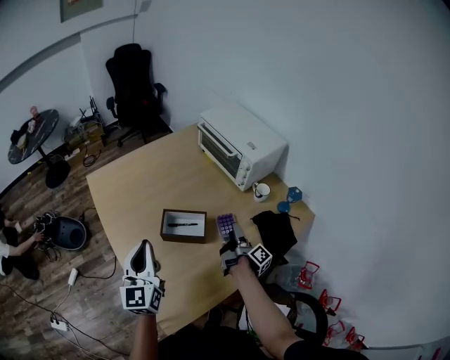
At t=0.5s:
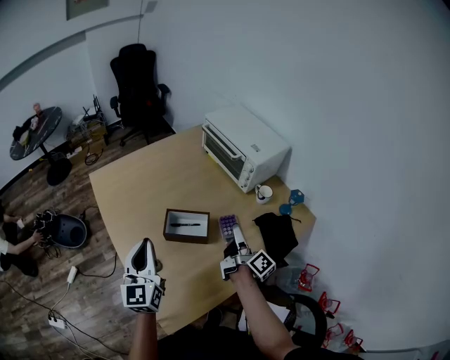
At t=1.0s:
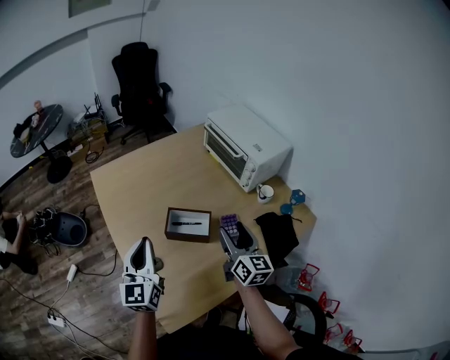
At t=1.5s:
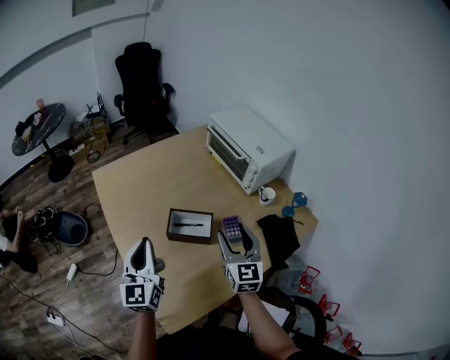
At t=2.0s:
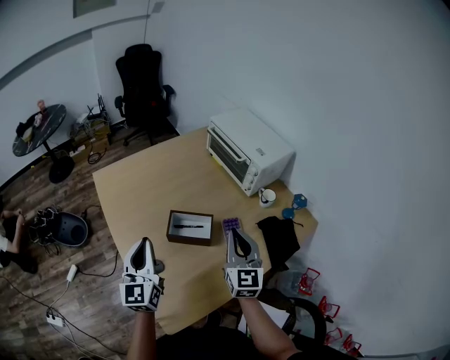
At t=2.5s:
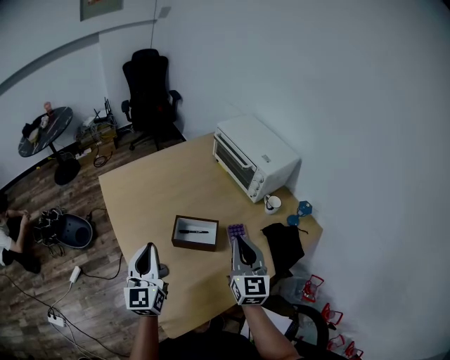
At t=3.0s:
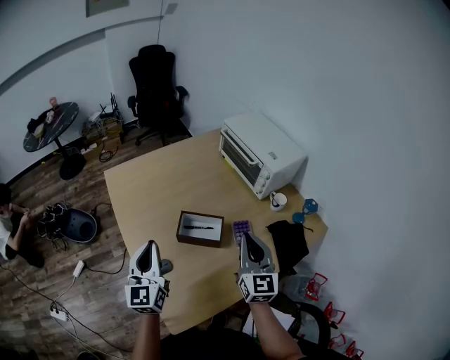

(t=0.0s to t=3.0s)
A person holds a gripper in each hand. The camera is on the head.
t=0.0s - t=1.5s: The right gripper is displaced upward and to the left by approximately 20 cm, and rotates around the line of its fingers by approximately 100 degrees, counterclockwise from behind.
t=1.5s - t=3.0s: The right gripper closes up.

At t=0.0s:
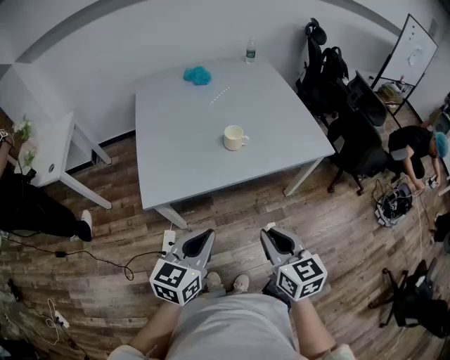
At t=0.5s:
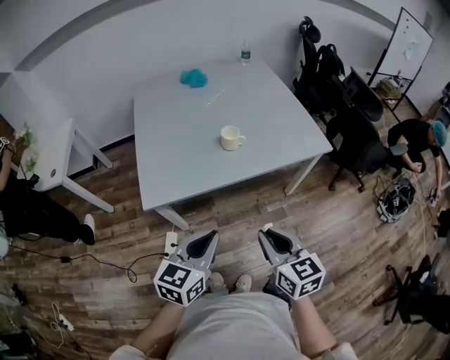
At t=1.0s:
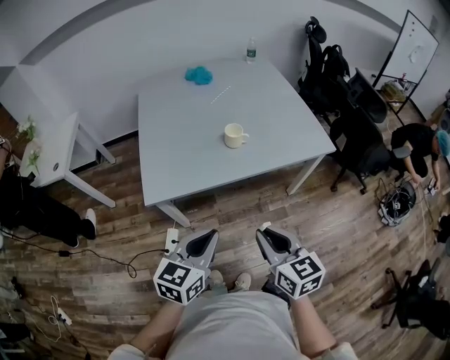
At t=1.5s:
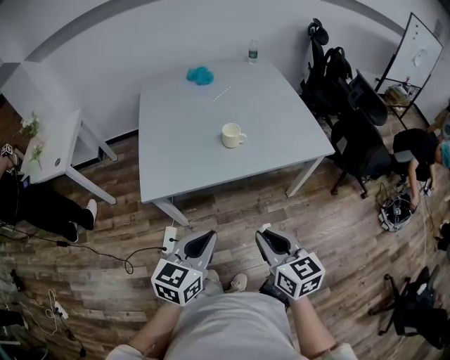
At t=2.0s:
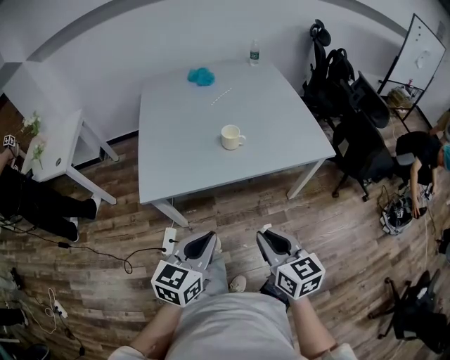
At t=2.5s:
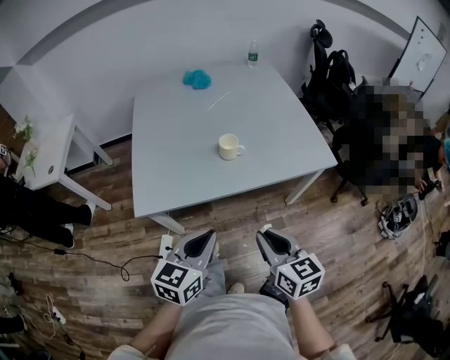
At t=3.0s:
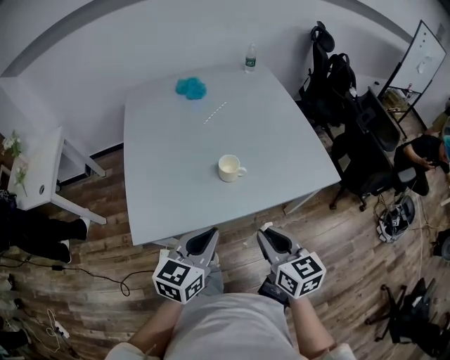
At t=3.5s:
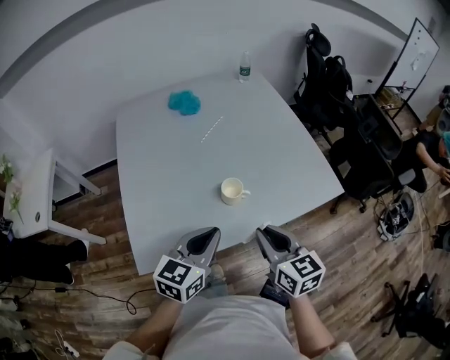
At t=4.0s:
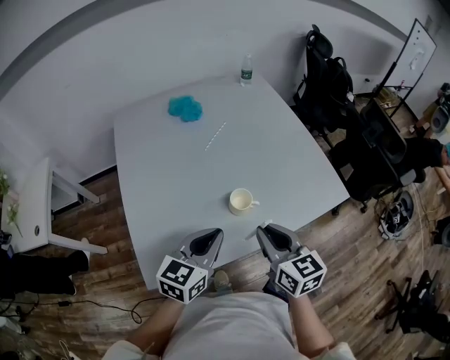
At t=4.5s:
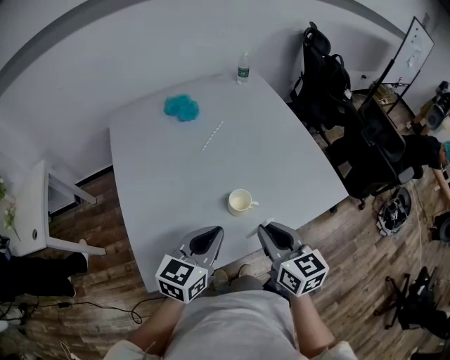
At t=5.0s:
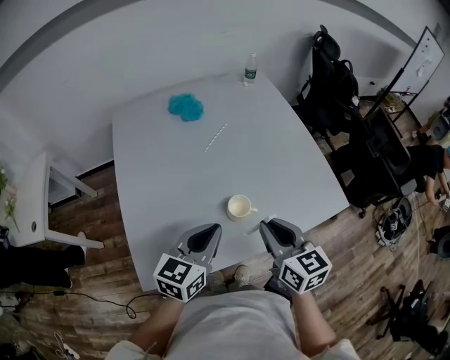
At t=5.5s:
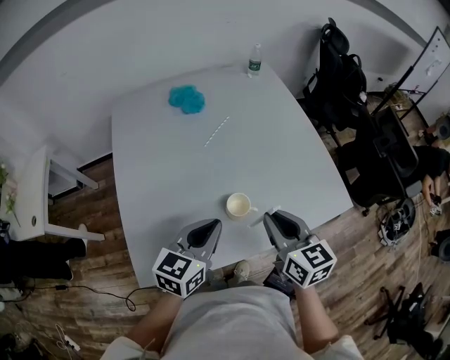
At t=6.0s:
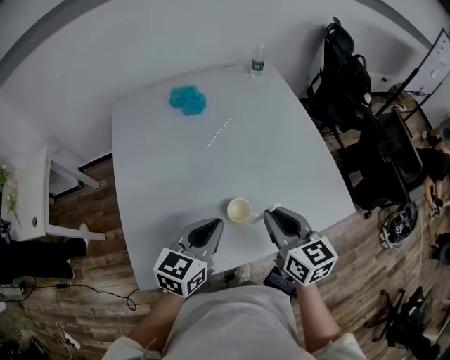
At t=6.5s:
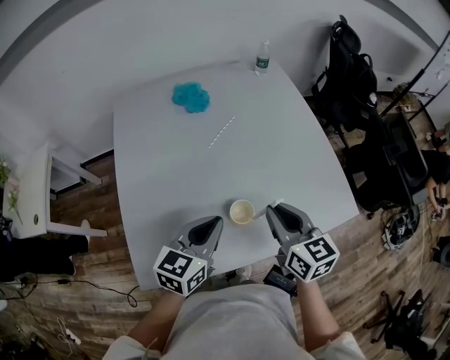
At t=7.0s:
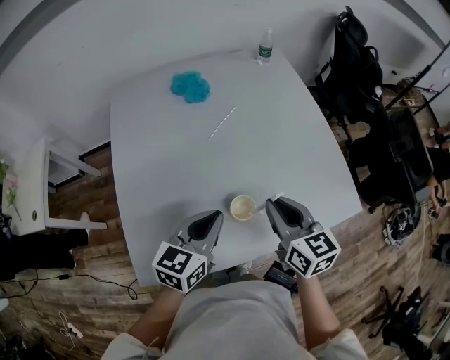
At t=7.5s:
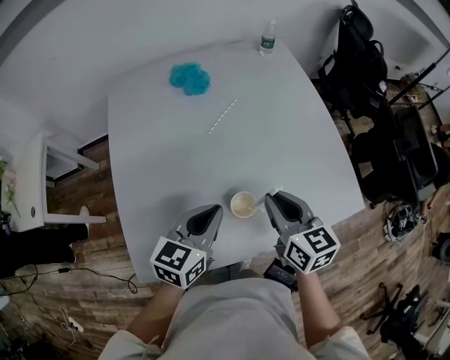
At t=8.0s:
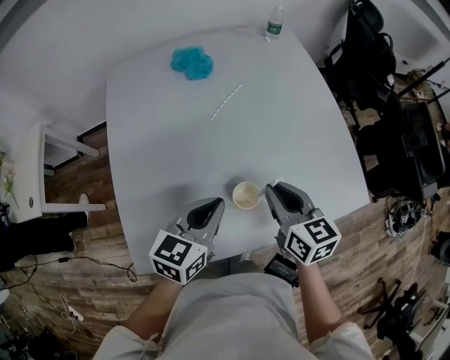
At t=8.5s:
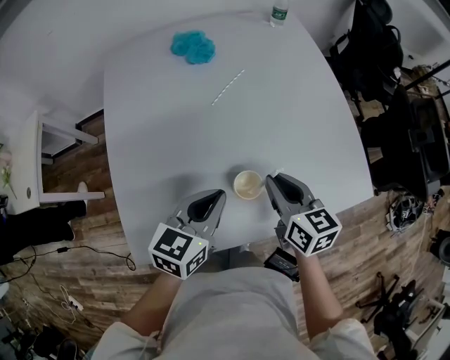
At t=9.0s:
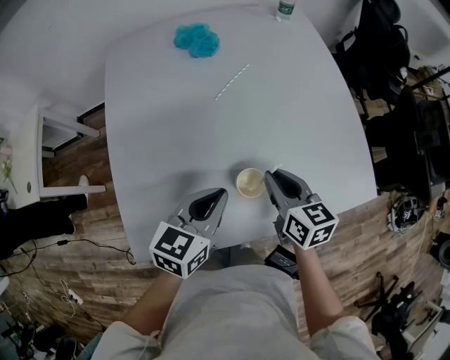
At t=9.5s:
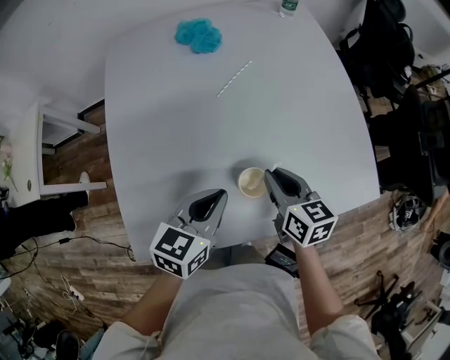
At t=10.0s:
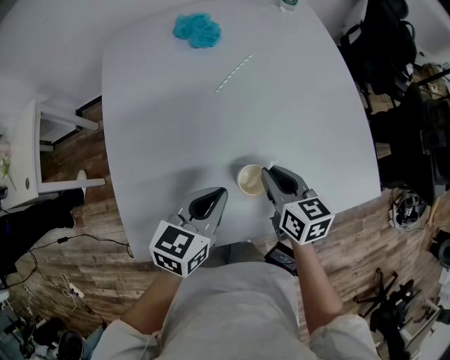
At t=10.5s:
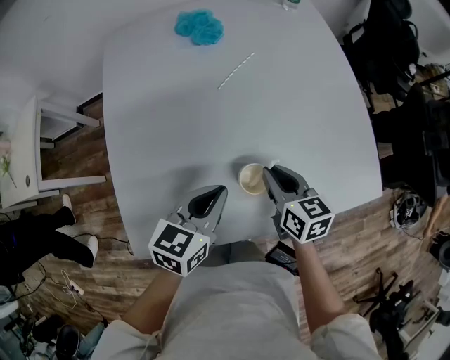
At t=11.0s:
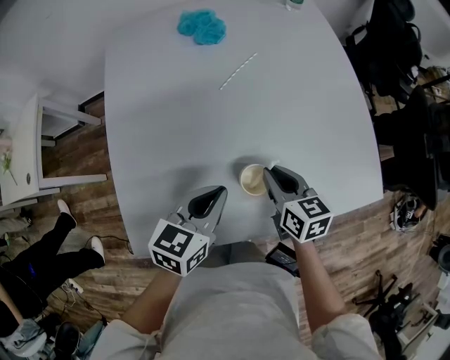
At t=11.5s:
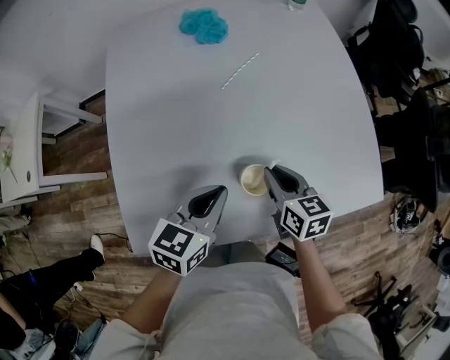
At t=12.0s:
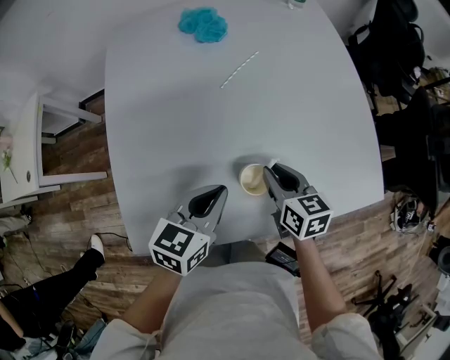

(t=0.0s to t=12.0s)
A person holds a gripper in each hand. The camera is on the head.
t=0.0s - t=2.0s: The left gripper heads to the right, covering about 5 cm.
t=2.0s - t=4.0s: The two grippers go some 30 cm forward.
t=4.0s - t=6.0s: Both grippers travel together forward, about 10 cm.
t=6.0s - t=8.0s: The right gripper shifts some 10 cm downward and forward. Meanwhile the left gripper changes place by about 5 cm.
t=8.0s - t=10.0s: The right gripper travels downward by about 10 cm.
t=10.0s - t=12.0s: The grippers stay close to where they were, moving slightly.

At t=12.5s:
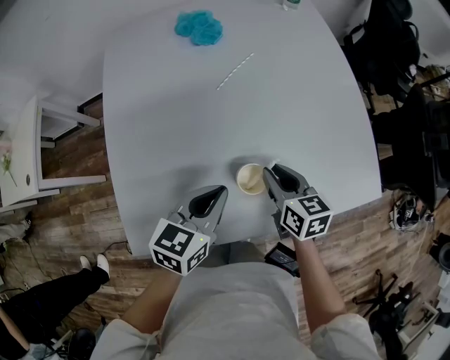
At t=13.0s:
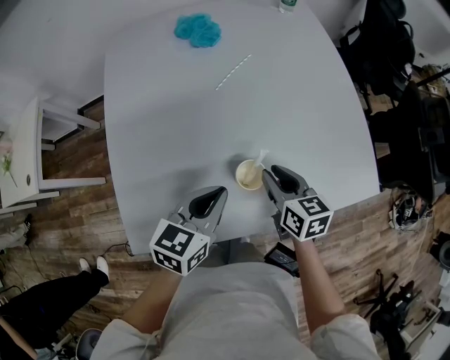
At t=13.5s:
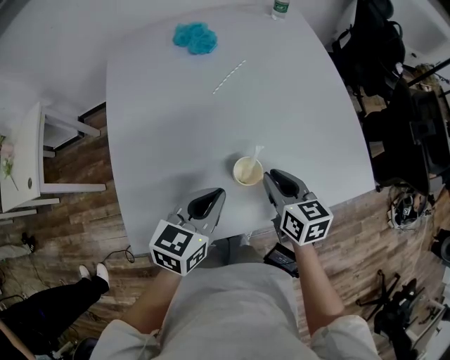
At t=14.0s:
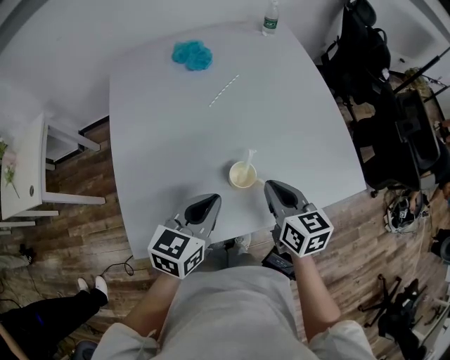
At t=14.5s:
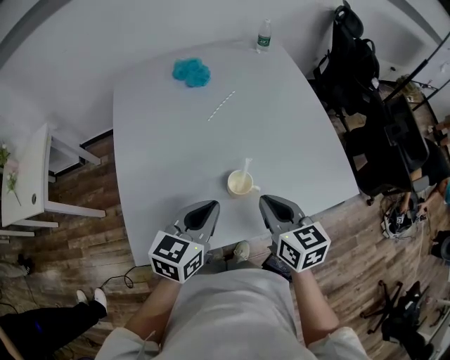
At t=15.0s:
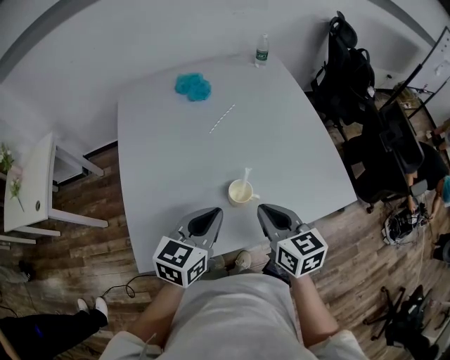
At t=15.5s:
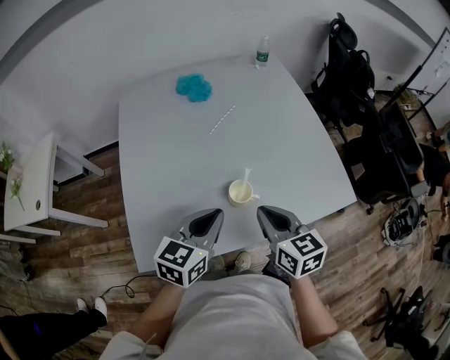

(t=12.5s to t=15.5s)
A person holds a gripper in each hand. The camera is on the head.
t=12.5s - t=14.0s: The left gripper goes approximately 5 cm backward, while the right gripper shifts approximately 10 cm upward and backward, and closes.
t=14.0s - t=15.5s: The right gripper travels upward and backward by some 5 cm.

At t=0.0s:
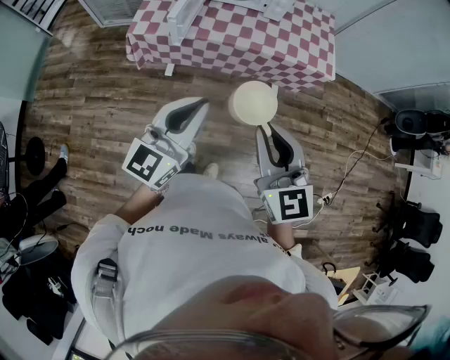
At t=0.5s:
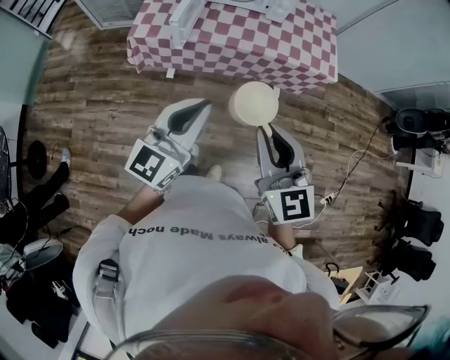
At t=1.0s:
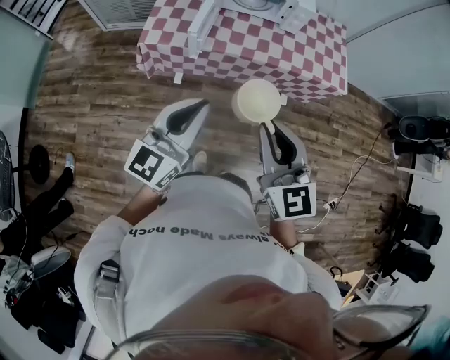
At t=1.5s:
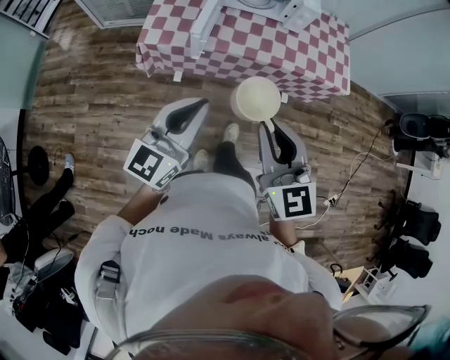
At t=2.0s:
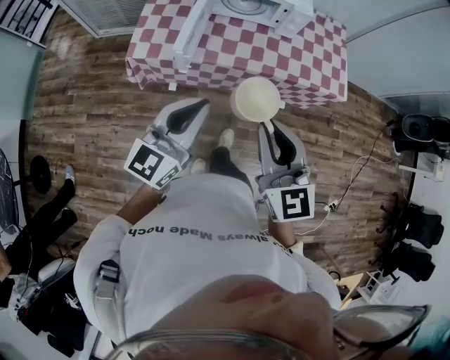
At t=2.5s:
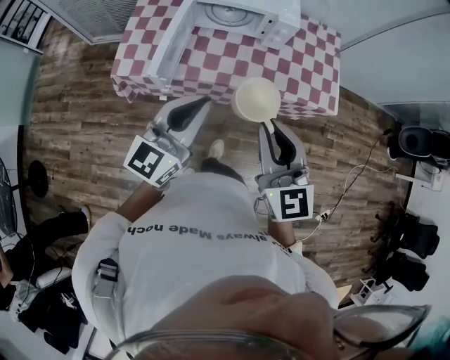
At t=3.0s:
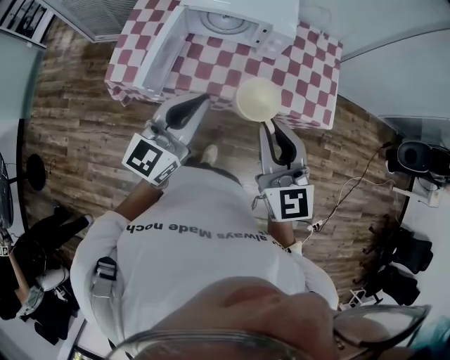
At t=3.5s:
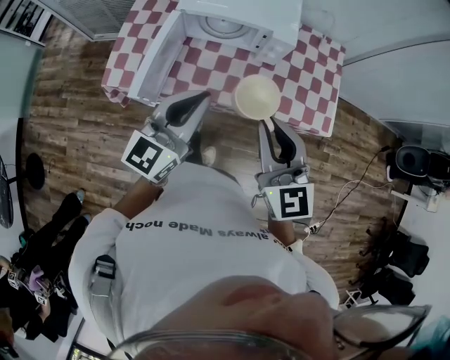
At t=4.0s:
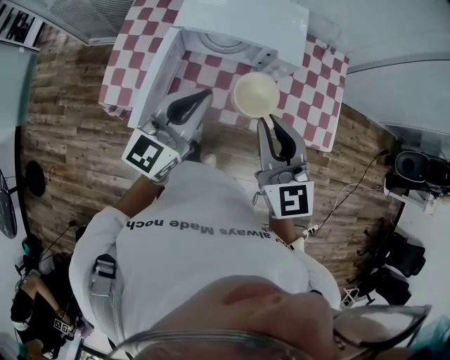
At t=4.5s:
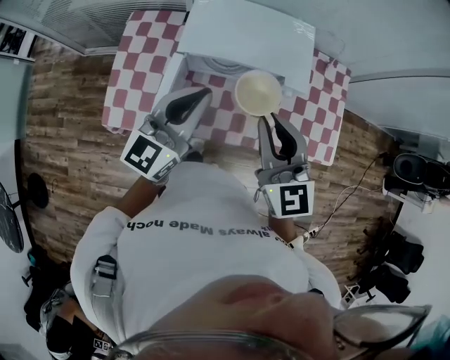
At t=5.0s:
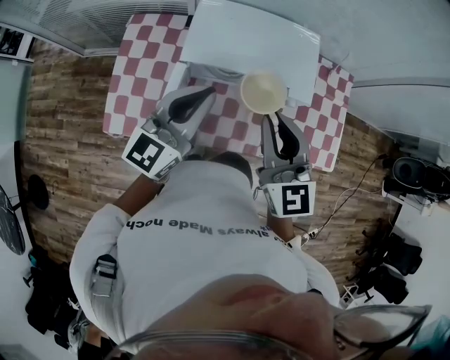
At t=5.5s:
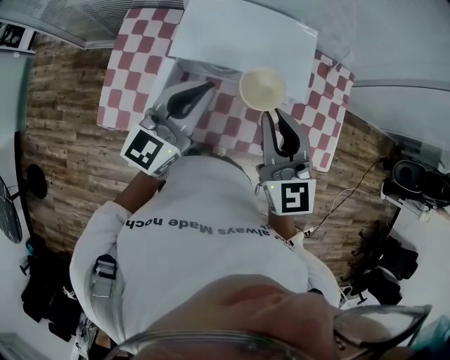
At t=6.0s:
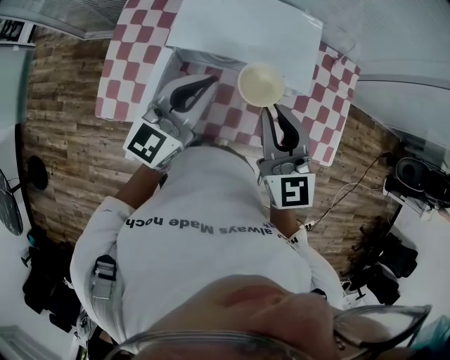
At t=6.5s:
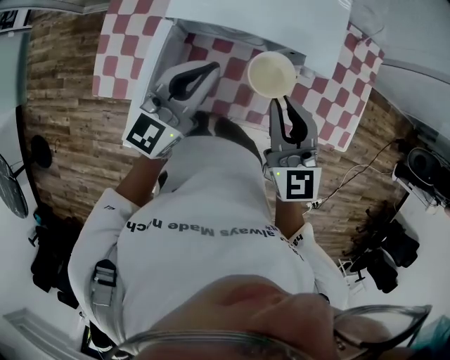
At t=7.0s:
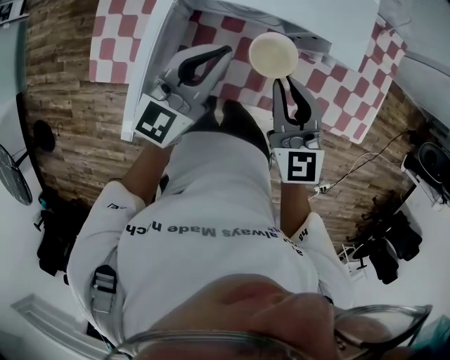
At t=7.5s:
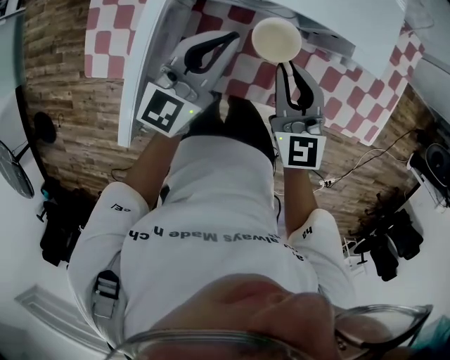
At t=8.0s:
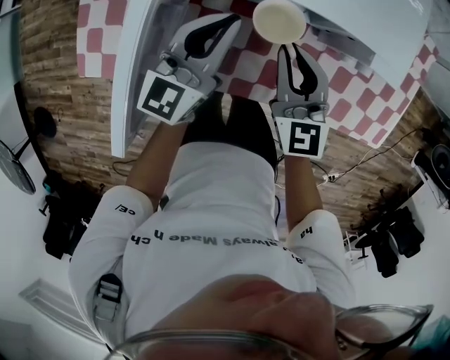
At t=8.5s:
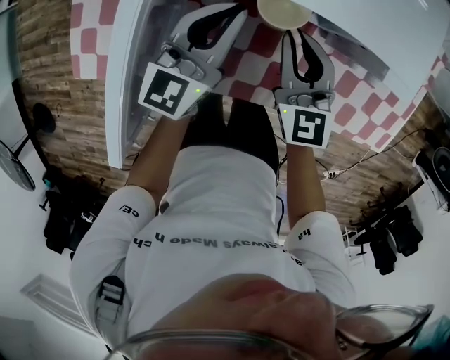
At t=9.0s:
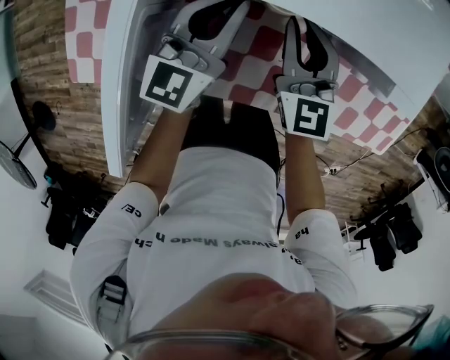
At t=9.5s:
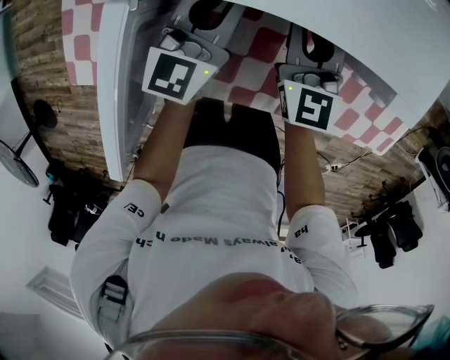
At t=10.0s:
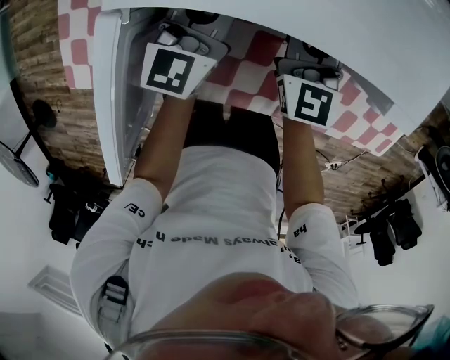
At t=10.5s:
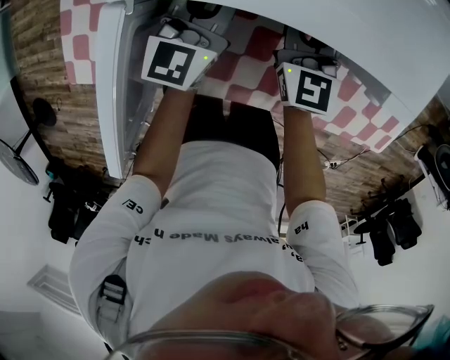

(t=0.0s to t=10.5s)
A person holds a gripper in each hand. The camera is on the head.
t=0.0s - t=2.0s: Both grippers move forward and to the left, approximately 20 cm.
t=2.0s - t=4.0s: Both grippers travel together forward, approximately 40 cm.
t=4.0s - t=6.5s: The two grippers go about 20 cm forward and downward.
t=6.5s - t=8.5s: The two grippers go about 25 cm downward and forward.
t=8.5s - t=10.5s: The two grippers go some 10 cm forward.
